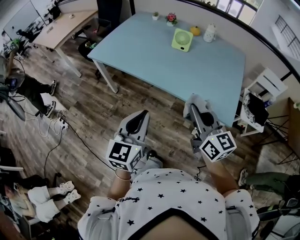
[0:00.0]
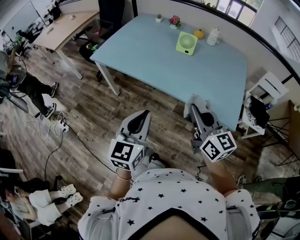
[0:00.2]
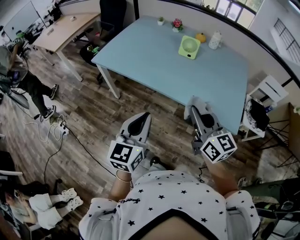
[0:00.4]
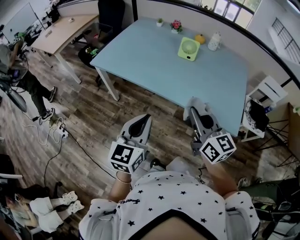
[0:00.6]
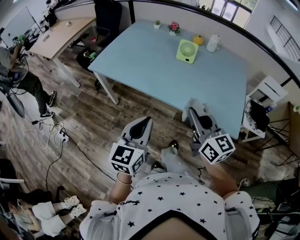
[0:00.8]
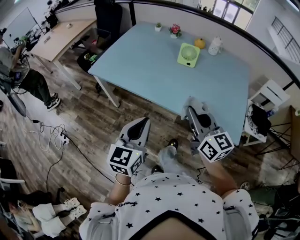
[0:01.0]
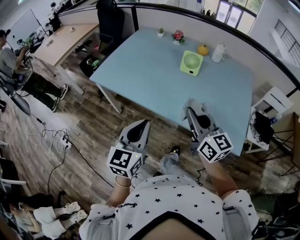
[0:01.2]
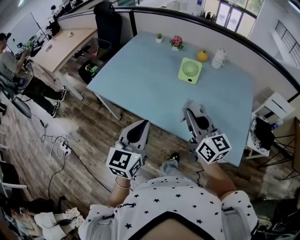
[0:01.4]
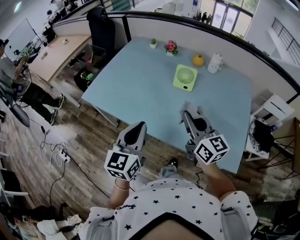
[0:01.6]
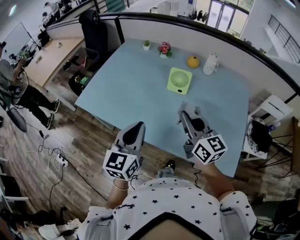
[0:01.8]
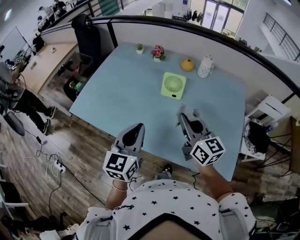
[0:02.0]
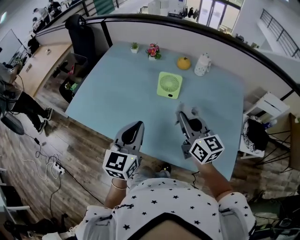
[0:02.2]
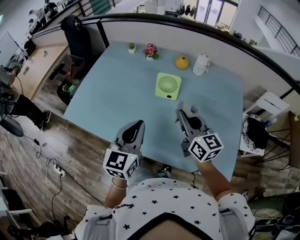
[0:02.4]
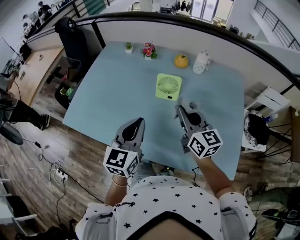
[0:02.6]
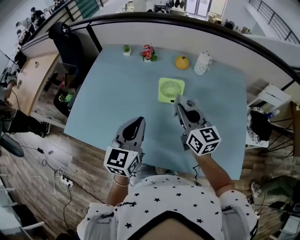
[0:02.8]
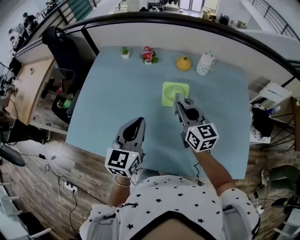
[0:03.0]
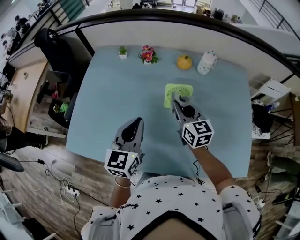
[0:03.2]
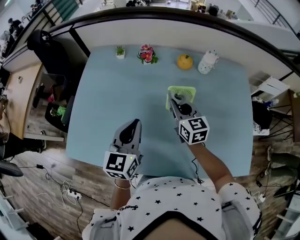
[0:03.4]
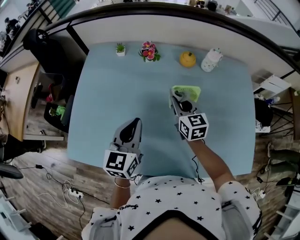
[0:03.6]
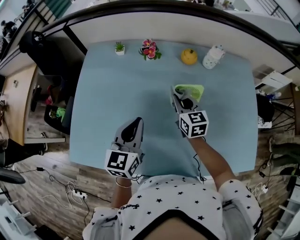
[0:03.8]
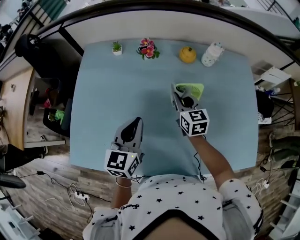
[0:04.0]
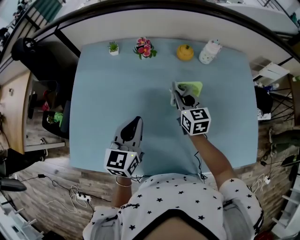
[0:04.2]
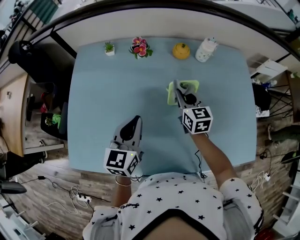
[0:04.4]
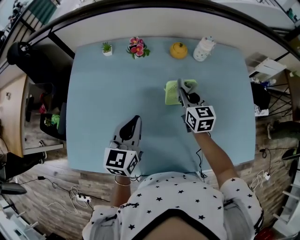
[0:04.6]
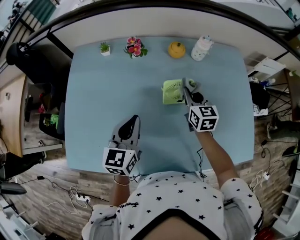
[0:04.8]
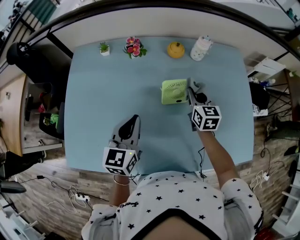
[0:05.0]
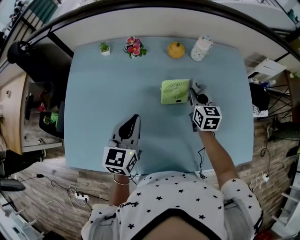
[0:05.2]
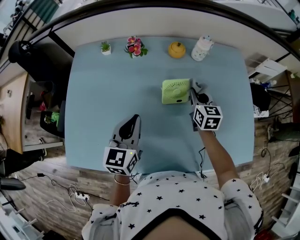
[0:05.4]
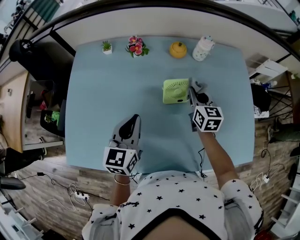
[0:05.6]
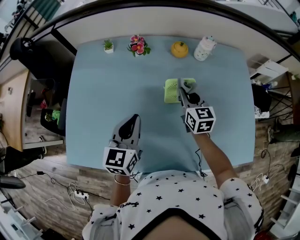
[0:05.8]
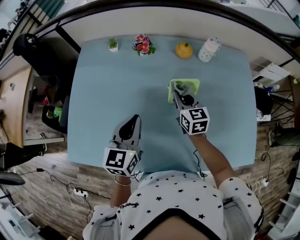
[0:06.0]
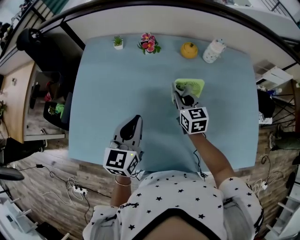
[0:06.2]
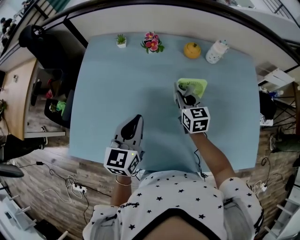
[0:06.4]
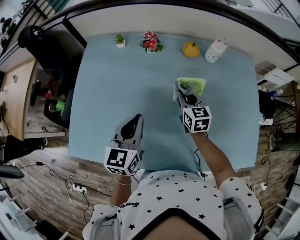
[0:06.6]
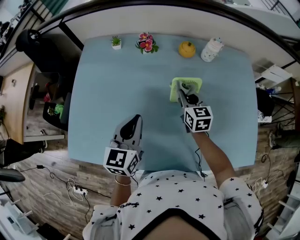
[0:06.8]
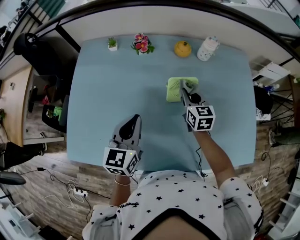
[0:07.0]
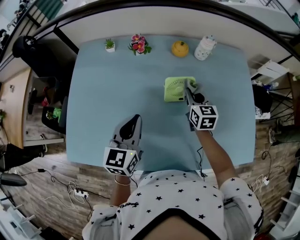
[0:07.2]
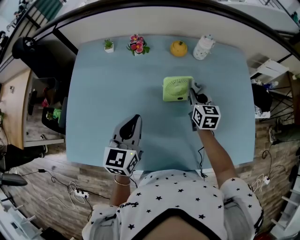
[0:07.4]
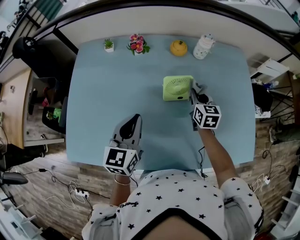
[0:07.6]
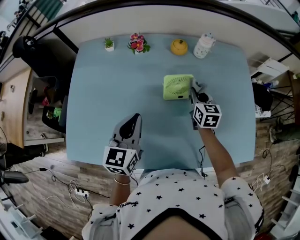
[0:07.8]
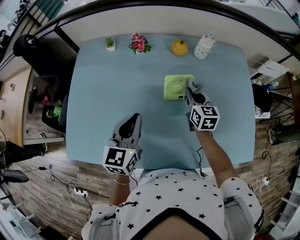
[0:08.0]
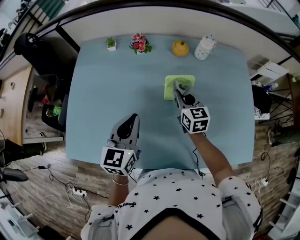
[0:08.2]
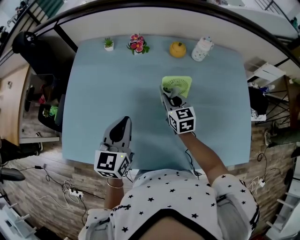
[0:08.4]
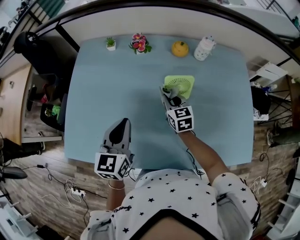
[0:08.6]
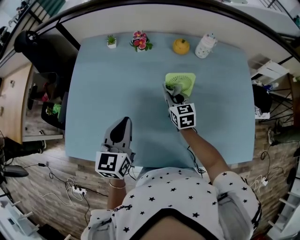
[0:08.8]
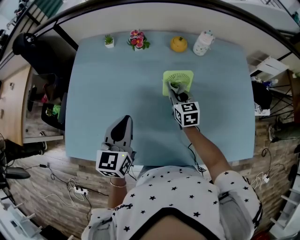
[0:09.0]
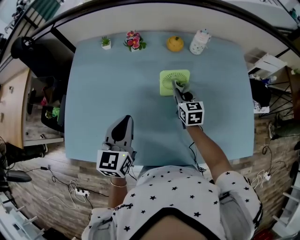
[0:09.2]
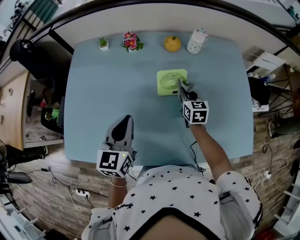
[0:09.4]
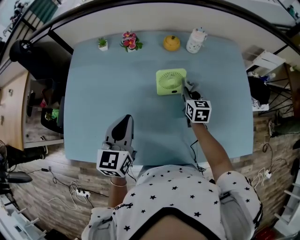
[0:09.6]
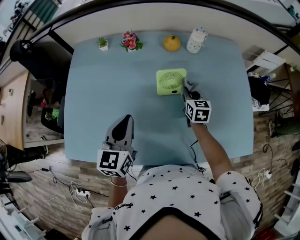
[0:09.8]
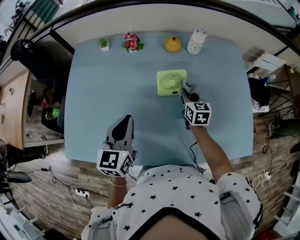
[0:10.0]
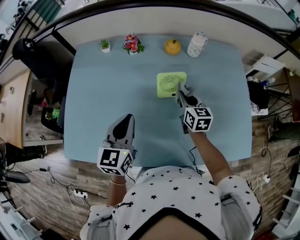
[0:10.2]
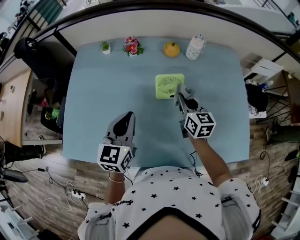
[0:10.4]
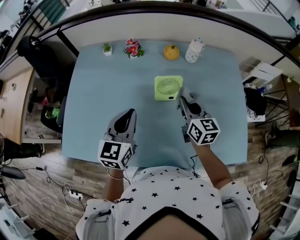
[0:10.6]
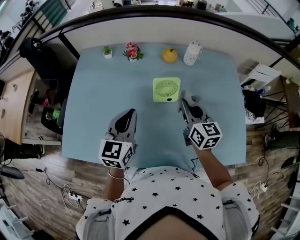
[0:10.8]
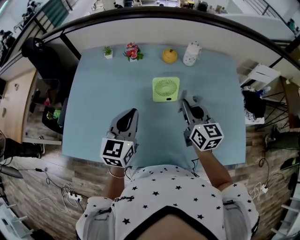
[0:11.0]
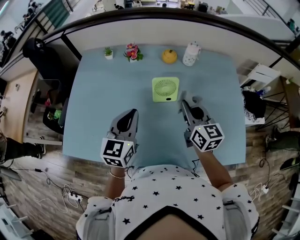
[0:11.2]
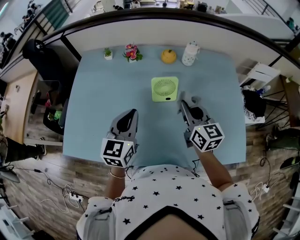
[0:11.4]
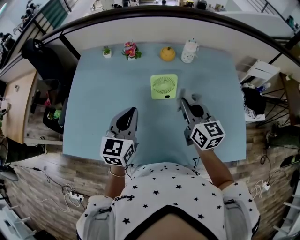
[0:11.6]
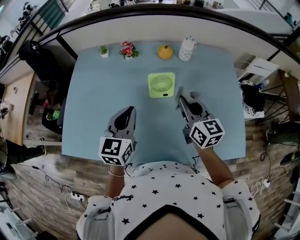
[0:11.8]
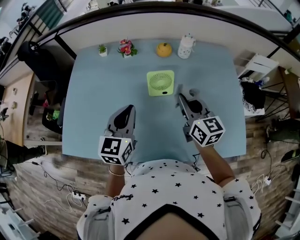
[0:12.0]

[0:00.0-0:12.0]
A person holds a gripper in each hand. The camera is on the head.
0:00.0 to 0:01.6: Both grippers move forward, some 25 cm.
0:01.6 to 0:03.0: Both grippers move forward, approximately 25 cm.
0:03.0 to 0:04.4: The left gripper shifts some 15 cm forward, to the left and downward; the right gripper moves forward and downward, approximately 15 cm, and changes its angle by approximately 20 degrees.
0:04.4 to 0:06.0: The right gripper goes to the right and returns, approximately 10 cm each way.
0:06.0 to 0:07.6: The right gripper heads to the right, covering about 10 cm.
0:07.6 to 0:09.0: The right gripper travels to the left by approximately 10 cm.
0:09.0 to 0:10.4: The right gripper is displaced upward and to the right by roughly 10 cm.
0:10.4 to 0:12.0: The right gripper travels upward and backward by roughly 10 cm.

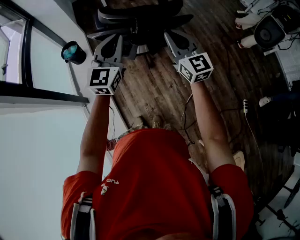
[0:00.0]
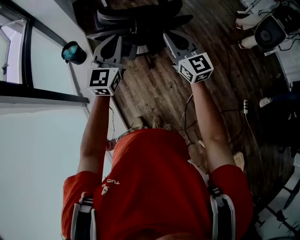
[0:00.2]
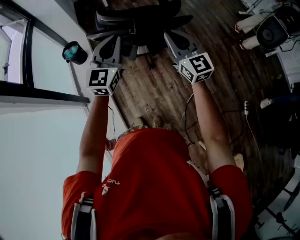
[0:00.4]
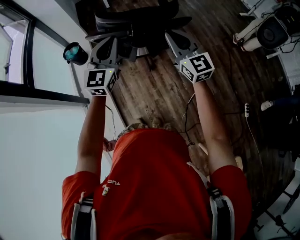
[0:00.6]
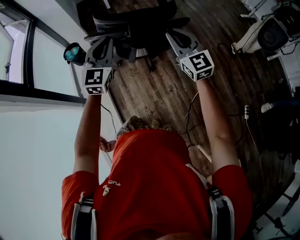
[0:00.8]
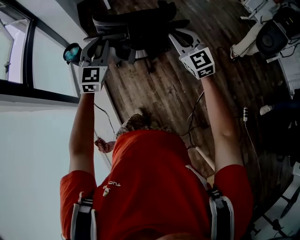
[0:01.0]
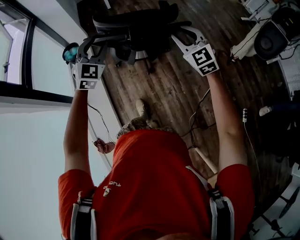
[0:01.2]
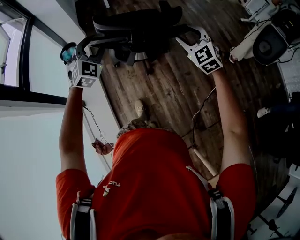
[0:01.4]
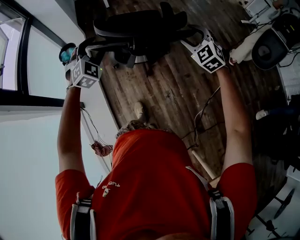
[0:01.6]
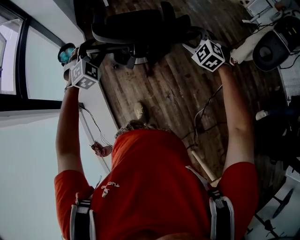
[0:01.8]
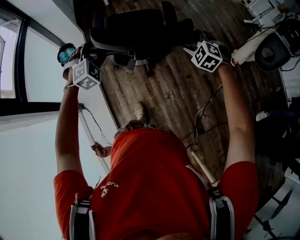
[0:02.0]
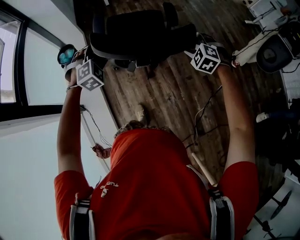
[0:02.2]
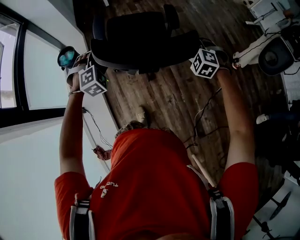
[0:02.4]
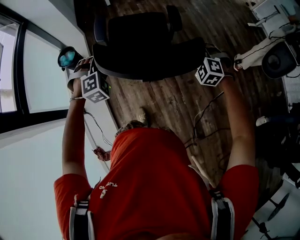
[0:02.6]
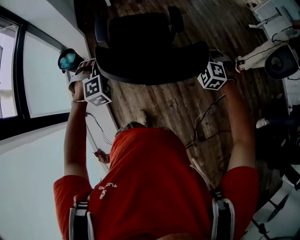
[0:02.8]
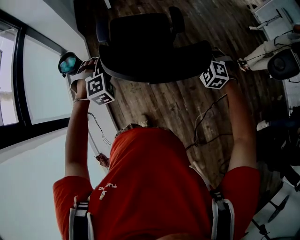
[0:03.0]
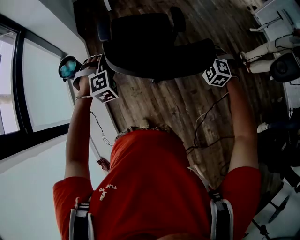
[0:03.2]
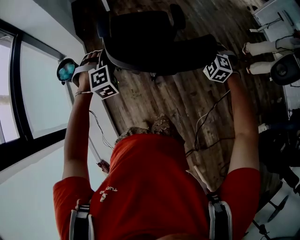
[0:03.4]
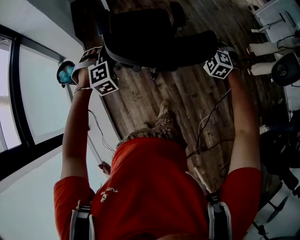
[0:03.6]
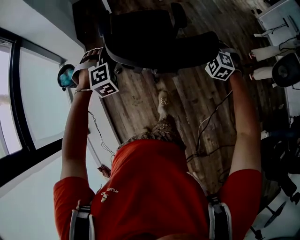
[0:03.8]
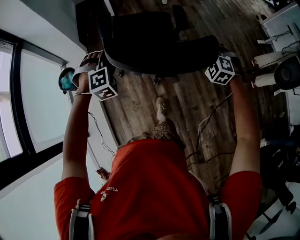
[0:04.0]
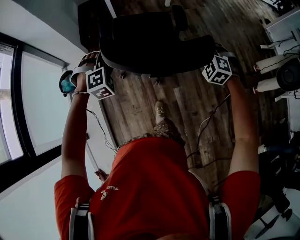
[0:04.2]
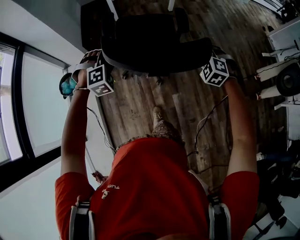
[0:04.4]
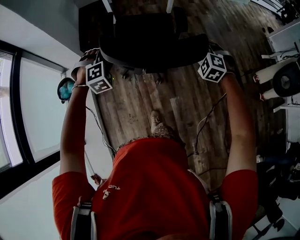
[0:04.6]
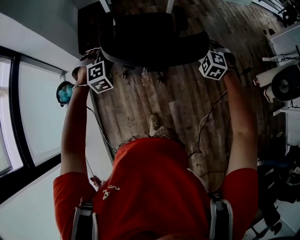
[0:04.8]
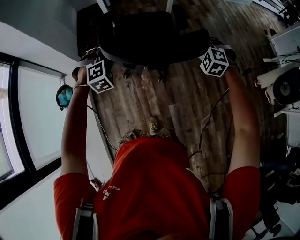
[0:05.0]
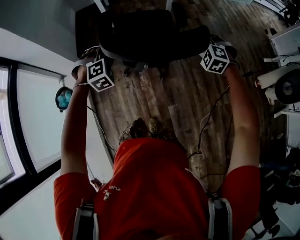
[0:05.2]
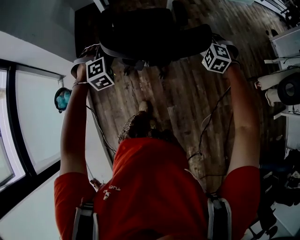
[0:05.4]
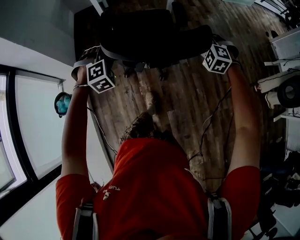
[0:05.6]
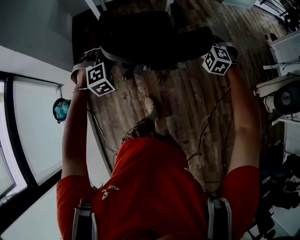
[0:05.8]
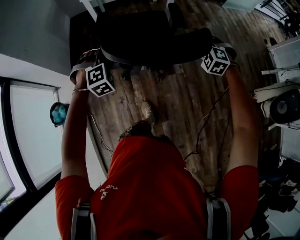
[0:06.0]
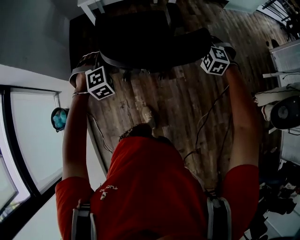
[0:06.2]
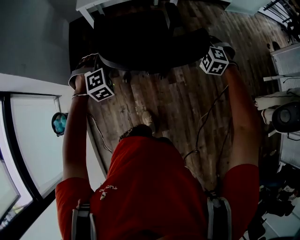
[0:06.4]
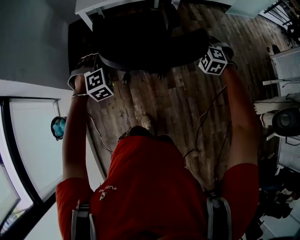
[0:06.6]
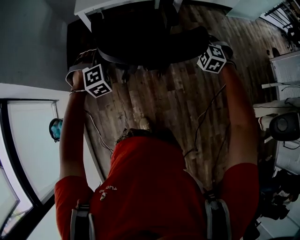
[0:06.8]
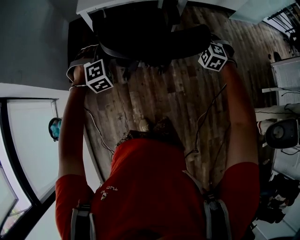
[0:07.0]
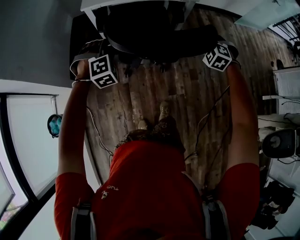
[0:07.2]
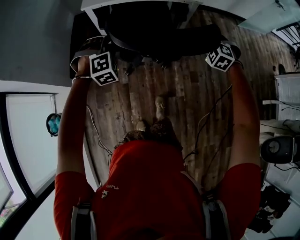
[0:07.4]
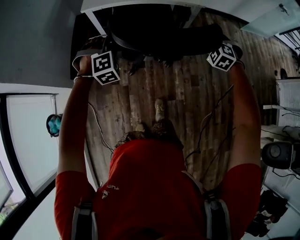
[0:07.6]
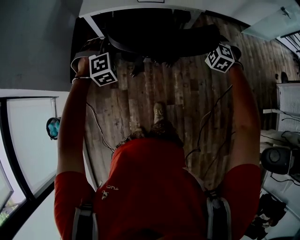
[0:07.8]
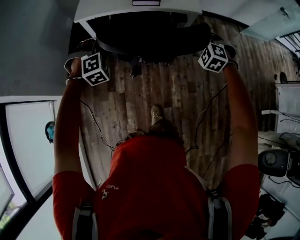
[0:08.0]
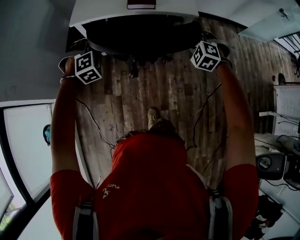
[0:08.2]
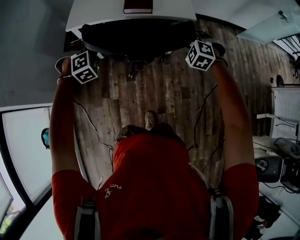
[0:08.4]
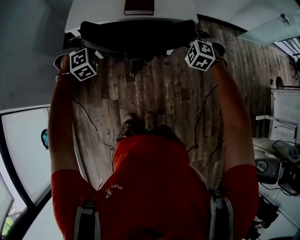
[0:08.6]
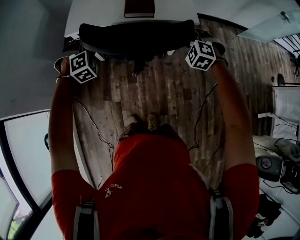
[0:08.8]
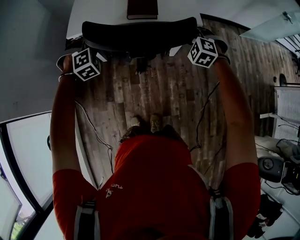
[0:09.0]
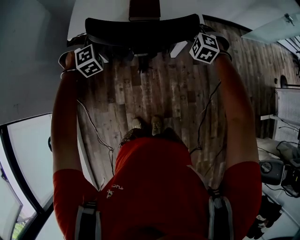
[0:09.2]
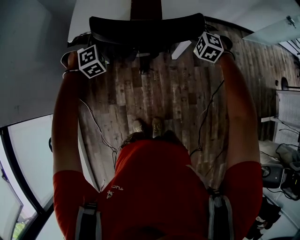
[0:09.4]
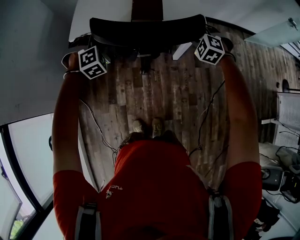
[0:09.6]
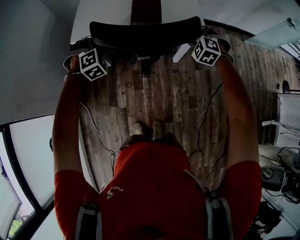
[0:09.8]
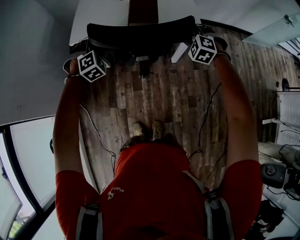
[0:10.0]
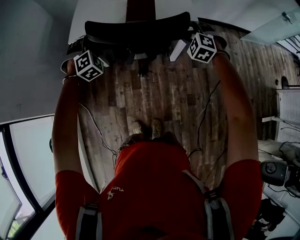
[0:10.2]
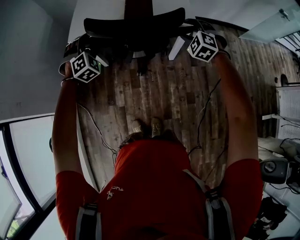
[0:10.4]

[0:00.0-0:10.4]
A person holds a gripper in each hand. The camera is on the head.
0:00.0 to 0:01.4: The right gripper travels to the right, forward and downward by roughly 15 cm, rotates some 40 degrees, and opens its fingers. Meanwhile the left gripper travels forward, downward and to the left by some 15 cm, rotates about 40 degrees, and opens up.
0:01.4 to 0:03.0: The two grippers go about 20 cm forward and downward. The right gripper changes its angle by roughly 40 degrees; the left gripper changes its angle by some 40 degrees.
0:03.0 to 0:04.4: The two grippers go roughly 30 cm forward.
0:04.4 to 0:06.0: The left gripper is displaced forward and to the right by roughly 30 cm, while the right gripper is displaced forward by about 30 cm.
0:06.0 to 0:07.4: Both grippers travel together forward, about 30 cm.
0:07.4 to 0:09.0: The two grippers go approximately 25 cm forward.
0:09.0 to 0:10.4: The left gripper opens its fingers.

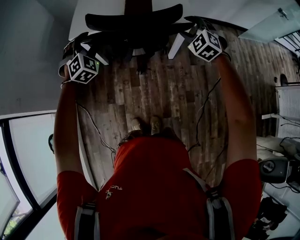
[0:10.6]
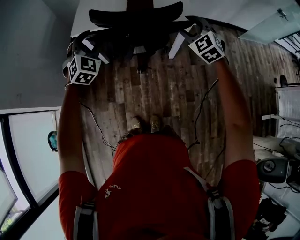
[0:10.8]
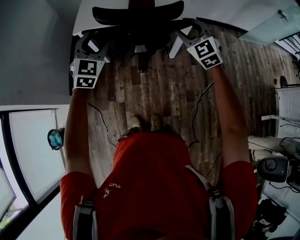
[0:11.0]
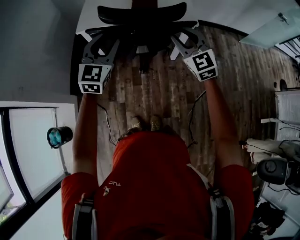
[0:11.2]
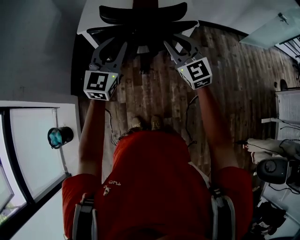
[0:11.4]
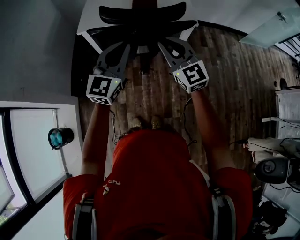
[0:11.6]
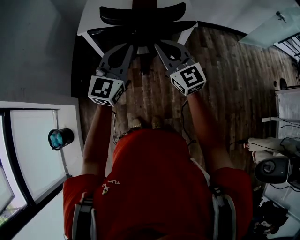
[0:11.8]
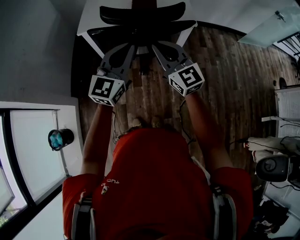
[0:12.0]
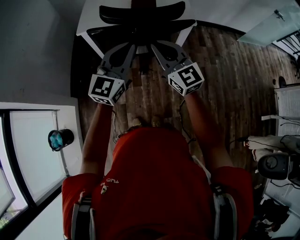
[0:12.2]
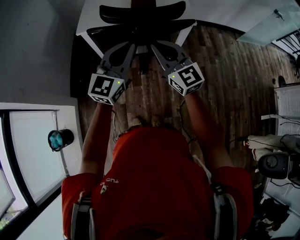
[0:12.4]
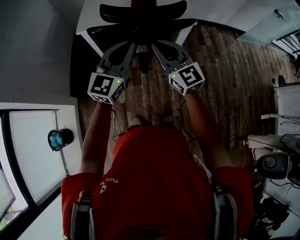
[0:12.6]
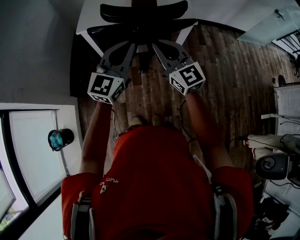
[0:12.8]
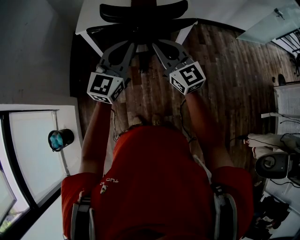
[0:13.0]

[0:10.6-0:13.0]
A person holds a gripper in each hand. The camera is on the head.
0:10.6 to 0:11.8: The left gripper goes about 20 cm backward, to the right and upward, tips its fingers upward by some 30 degrees, and closes, while the right gripper shifts some 25 cm to the left, backward and upward, angles its fingers upward, by roughly 40 degrees, and closes.
0:11.8 to 0:13.0: There are only small adjustments of the grippers.
